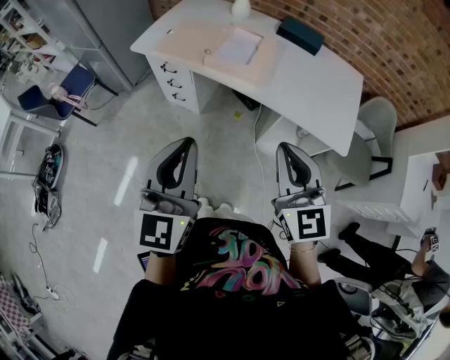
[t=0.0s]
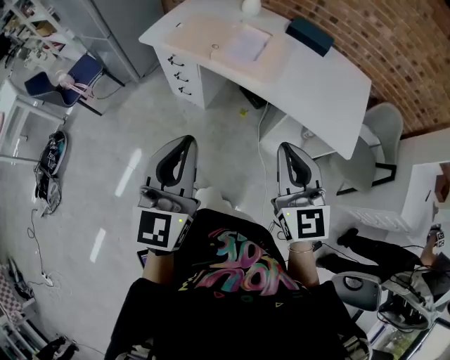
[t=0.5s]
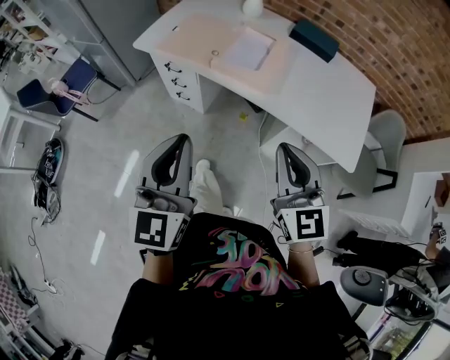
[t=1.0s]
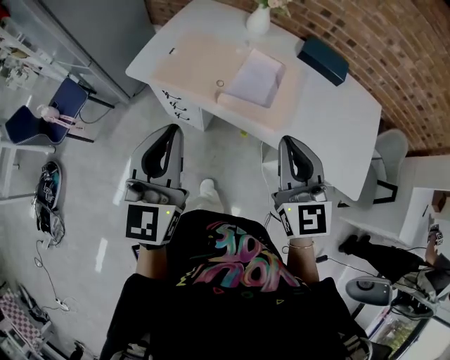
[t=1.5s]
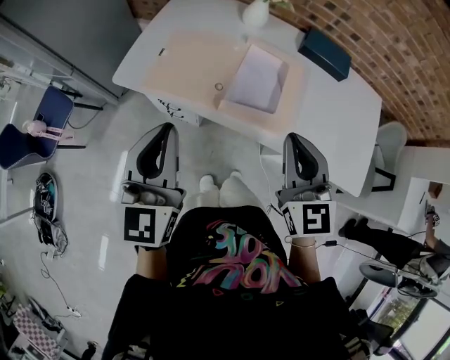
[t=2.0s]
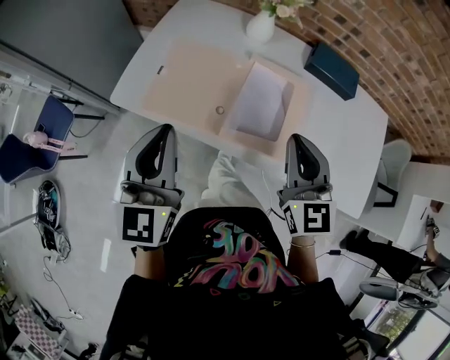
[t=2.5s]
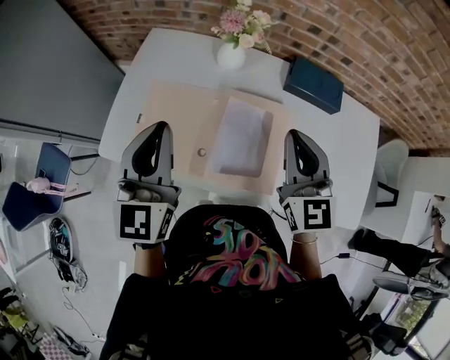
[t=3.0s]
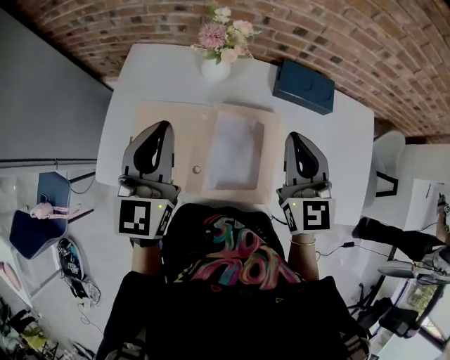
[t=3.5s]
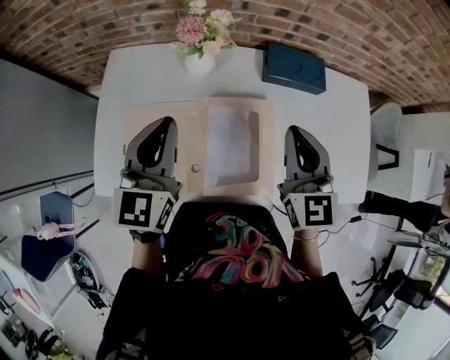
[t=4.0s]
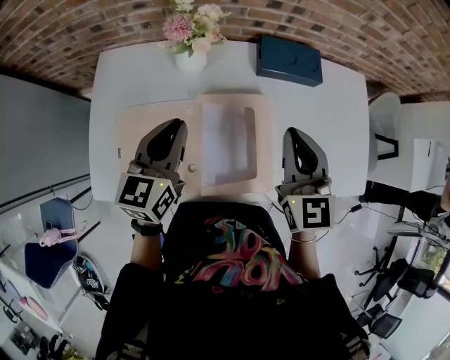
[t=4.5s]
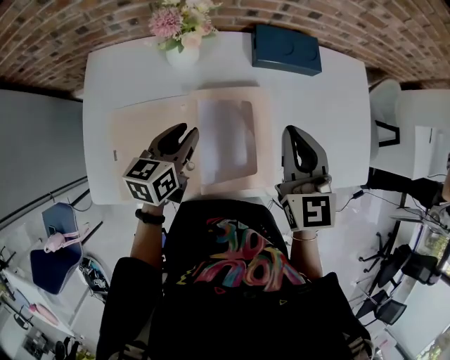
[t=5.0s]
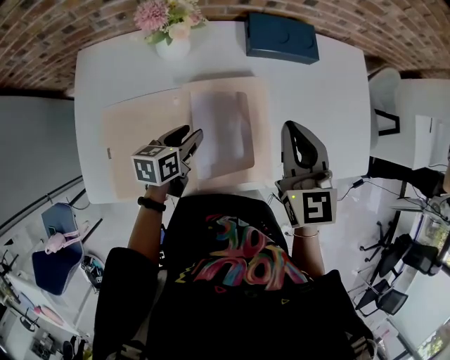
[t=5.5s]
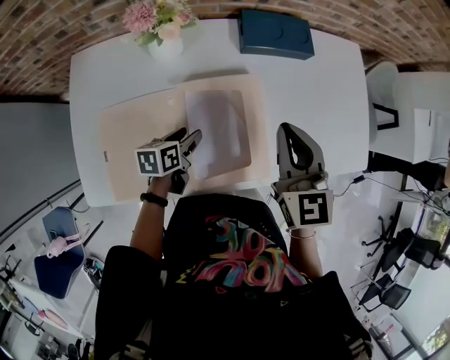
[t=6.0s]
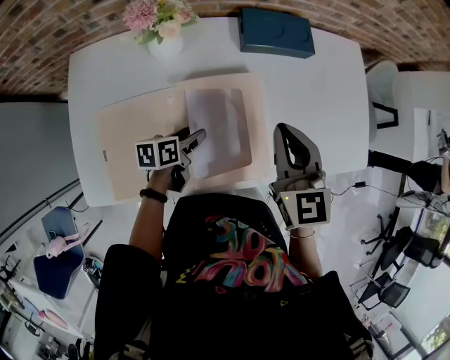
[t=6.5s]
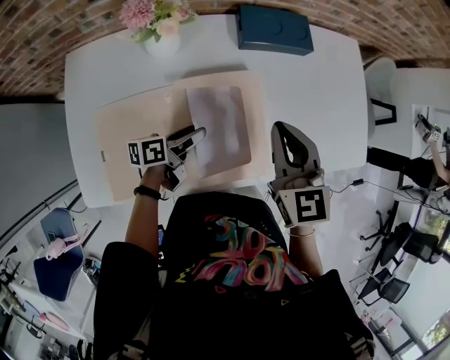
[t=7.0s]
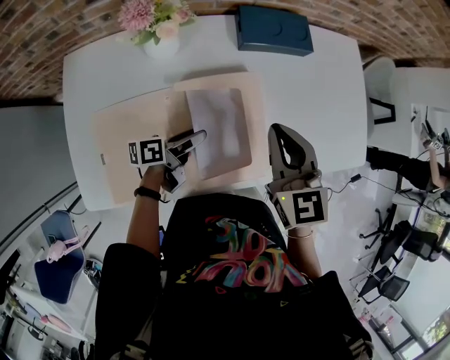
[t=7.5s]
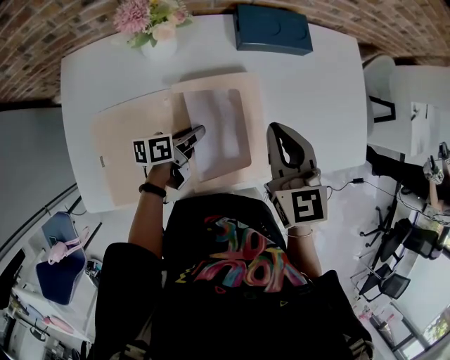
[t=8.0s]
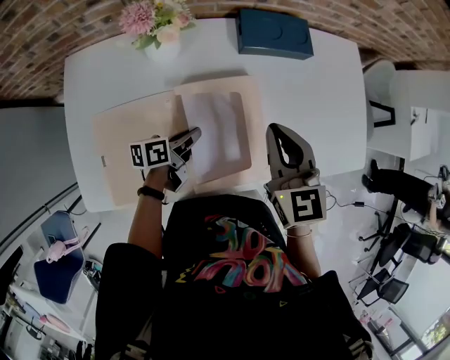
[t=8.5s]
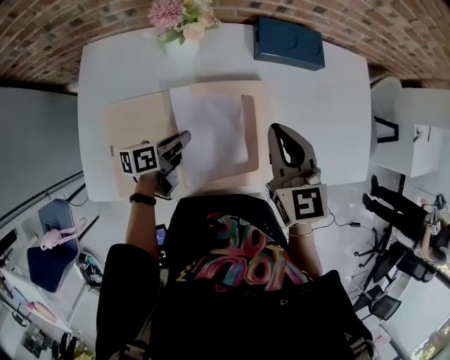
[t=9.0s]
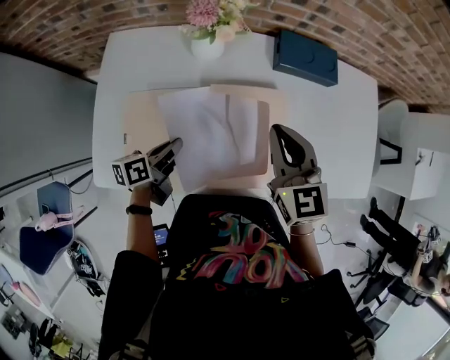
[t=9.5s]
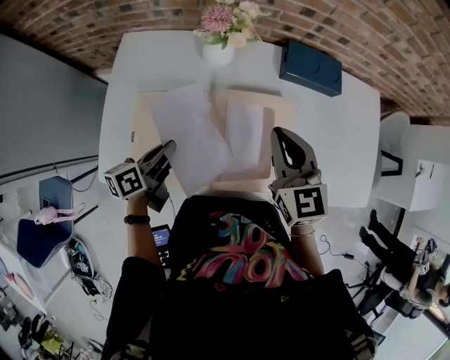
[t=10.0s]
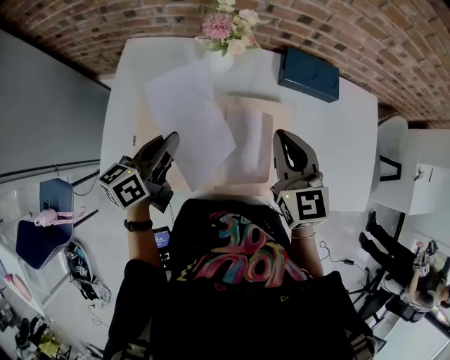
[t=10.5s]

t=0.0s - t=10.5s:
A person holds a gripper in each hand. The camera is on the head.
t=0.0s - t=2.0s: Both grippers move forward, about 35 cm.
t=2.0s - t=4.0s: Both grippers move forward, about 35 cm. The right gripper swivels approximately 20 degrees; the left gripper swivels approximately 20 degrees.
t=4.0s - t=6.5s: The left gripper is displaced downward by about 30 cm, swivels roughly 70 degrees, and opens up. The right gripper moves downward, approximately 5 cm.
t=6.5s - t=8.5s: The left gripper closes up.
t=8.5s - t=10.5s: The right gripper moves to the left, roughly 5 cm, while the left gripper shifts roughly 25 cm upward and to the left, and rotates approximately 40 degrees.

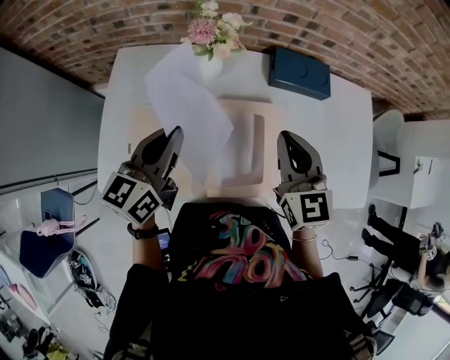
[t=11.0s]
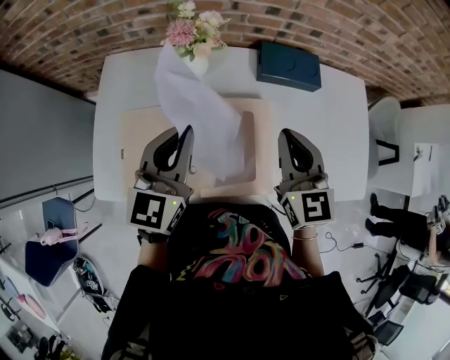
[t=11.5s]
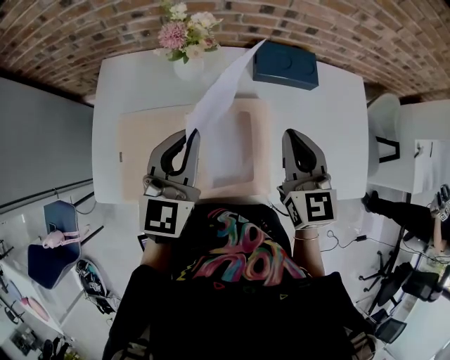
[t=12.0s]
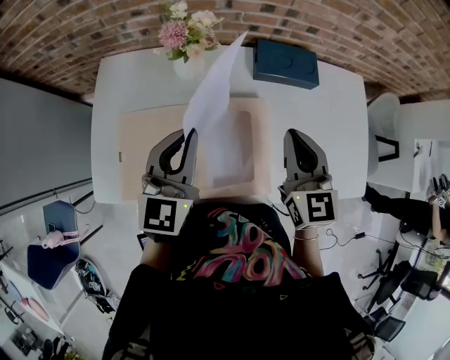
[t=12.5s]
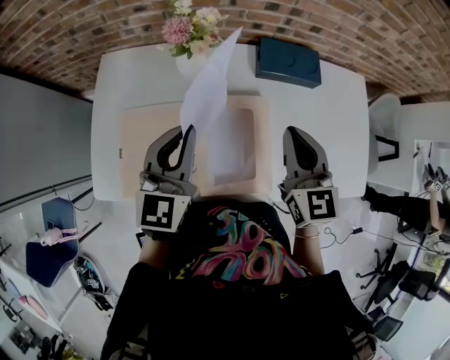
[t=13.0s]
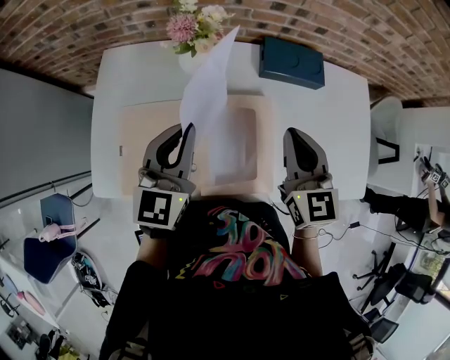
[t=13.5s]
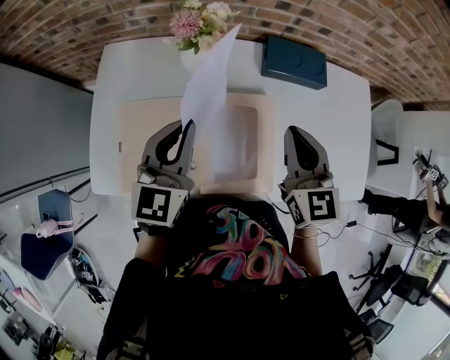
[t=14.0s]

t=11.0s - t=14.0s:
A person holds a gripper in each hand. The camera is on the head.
t=11.0s - t=12.5s: Both grippers travel together to the right, about 5 cm. The left gripper swivels some 20 degrees.
t=12.5s - t=14.0s: The grippers stay close to where they were, moving slightly.

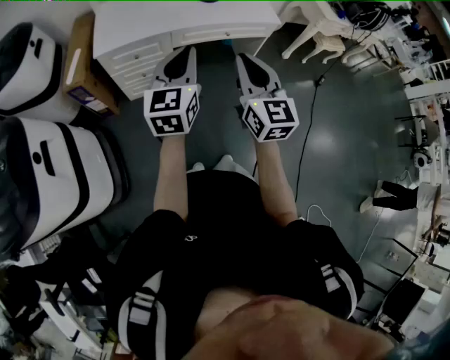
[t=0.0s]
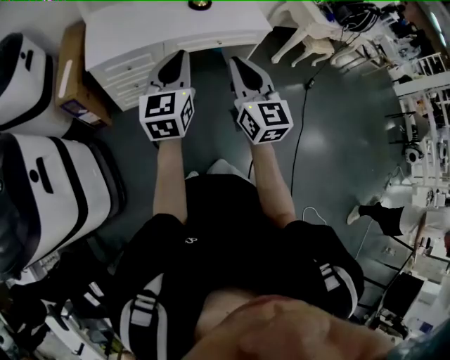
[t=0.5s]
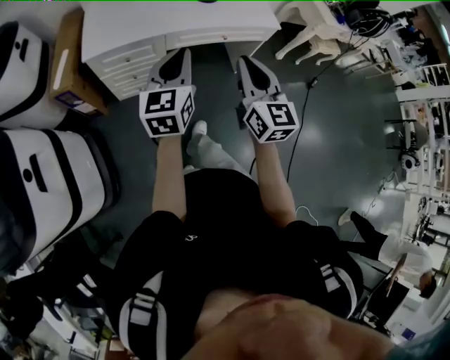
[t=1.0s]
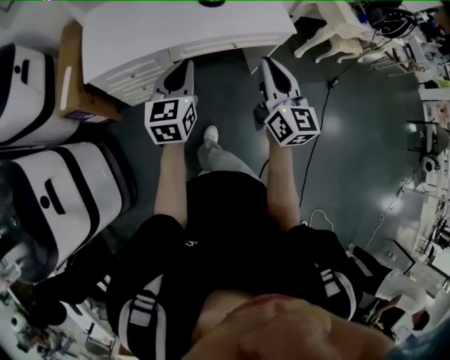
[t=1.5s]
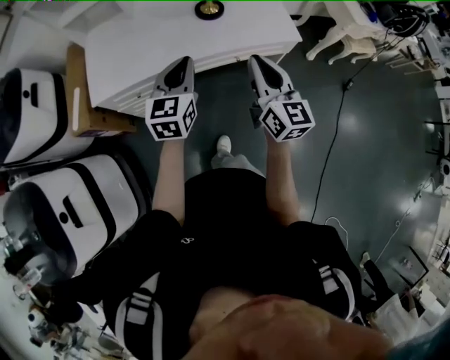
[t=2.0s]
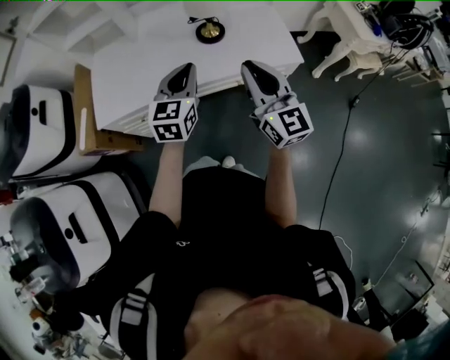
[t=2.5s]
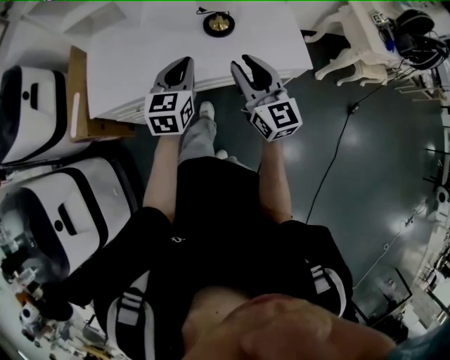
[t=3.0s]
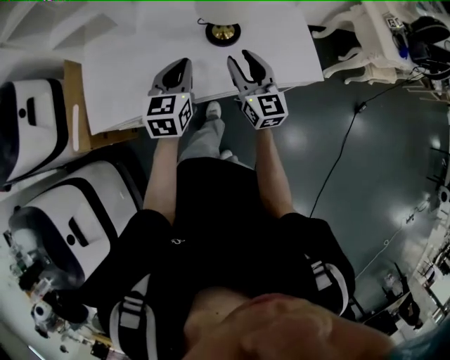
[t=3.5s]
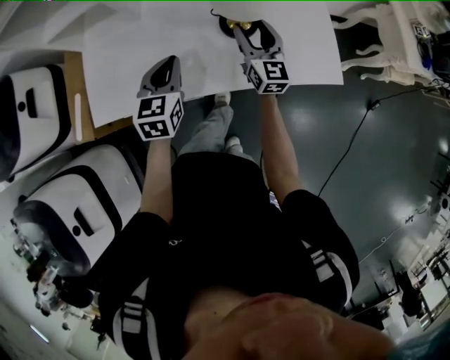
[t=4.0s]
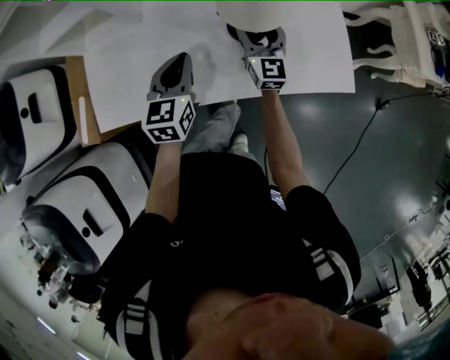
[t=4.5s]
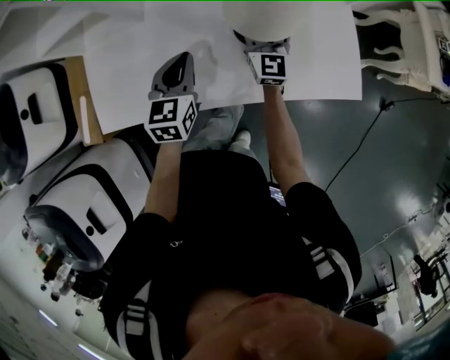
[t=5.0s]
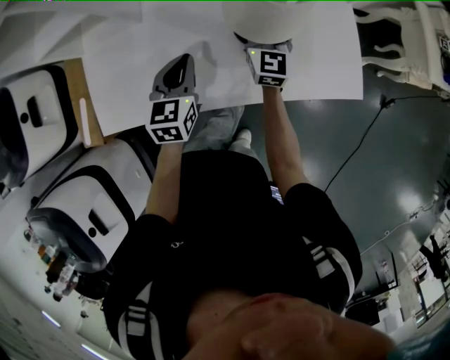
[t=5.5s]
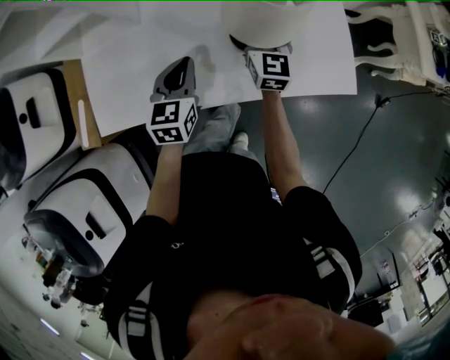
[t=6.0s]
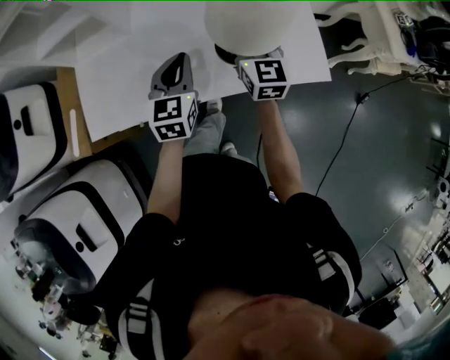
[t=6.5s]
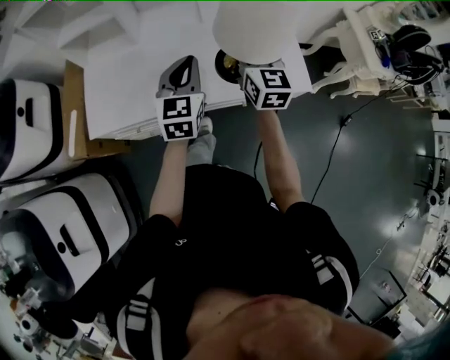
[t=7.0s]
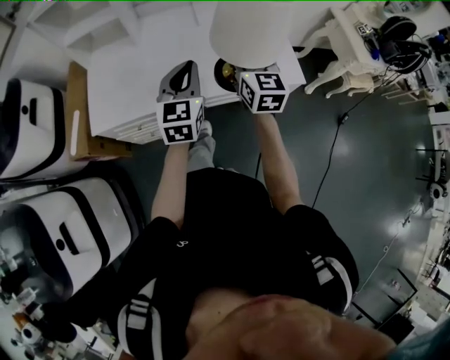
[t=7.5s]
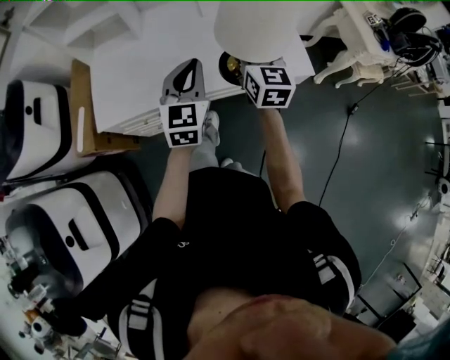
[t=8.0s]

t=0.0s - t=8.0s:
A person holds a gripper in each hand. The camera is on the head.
t=0.0s - t=2.0s: The two grippers go roughly 30 cm forward.
t=2.0s - t=4.0s: Both grippers travel together forward and downward, roughly 35 cm. The right gripper opens up.
t=4.0s - t=6.0s: The right gripper moves forward, roughly 5 cm, while the left gripper moves about 5 cm.
t=6.0s - t=8.0s: Both grippers move backward and upward, roughly 25 cm. The left gripper swivels about 20 degrees.

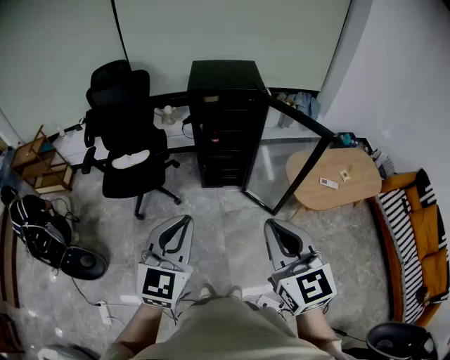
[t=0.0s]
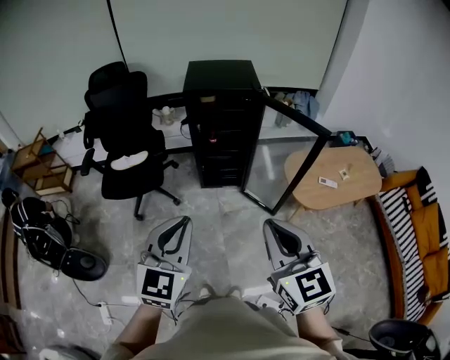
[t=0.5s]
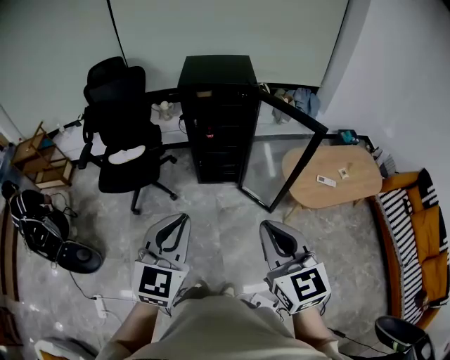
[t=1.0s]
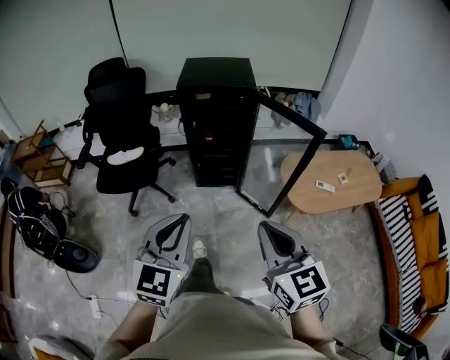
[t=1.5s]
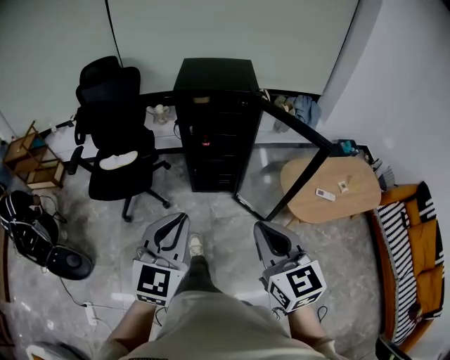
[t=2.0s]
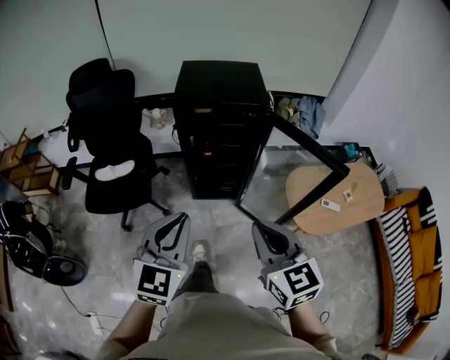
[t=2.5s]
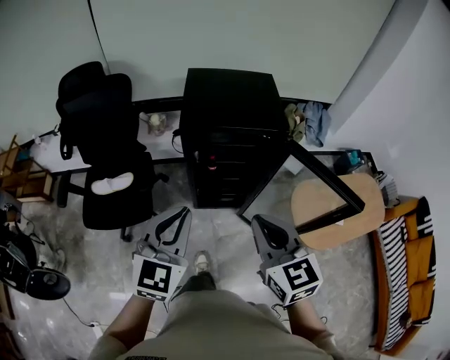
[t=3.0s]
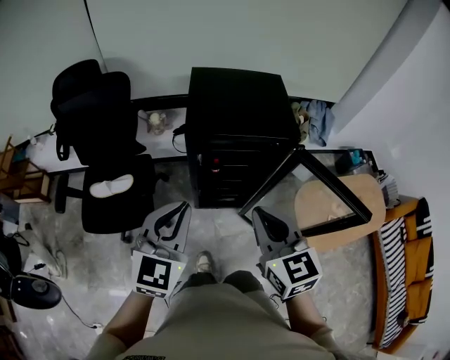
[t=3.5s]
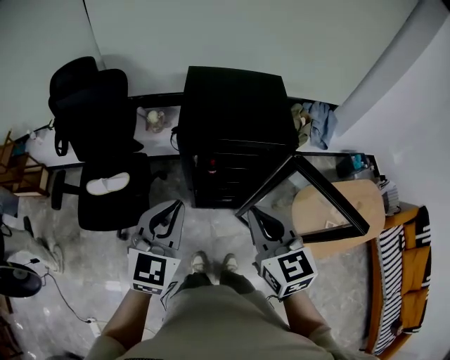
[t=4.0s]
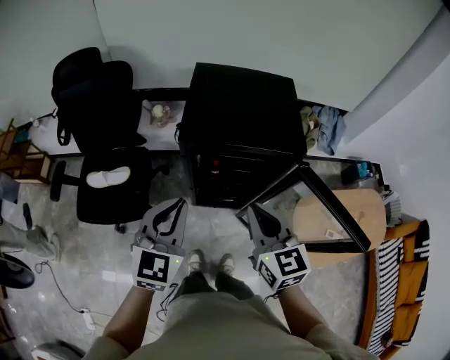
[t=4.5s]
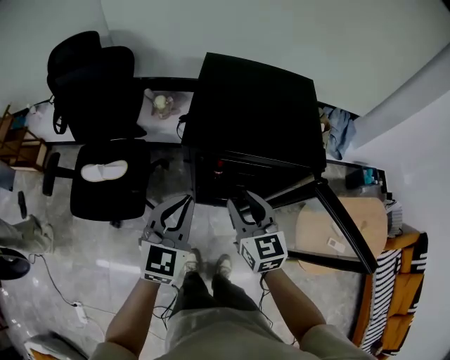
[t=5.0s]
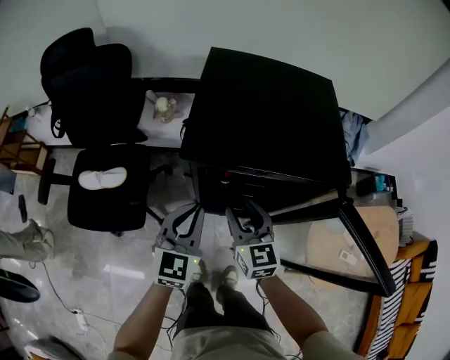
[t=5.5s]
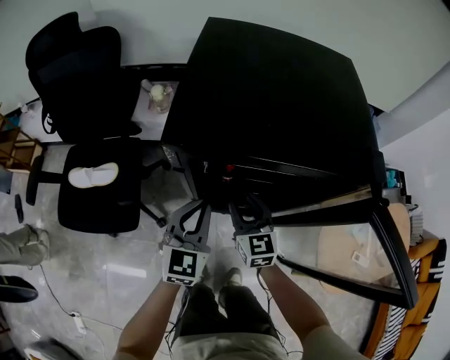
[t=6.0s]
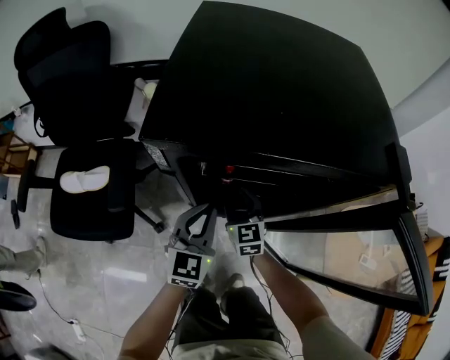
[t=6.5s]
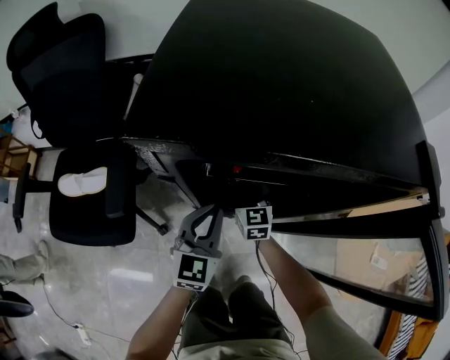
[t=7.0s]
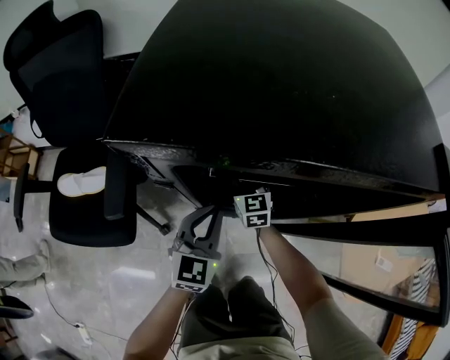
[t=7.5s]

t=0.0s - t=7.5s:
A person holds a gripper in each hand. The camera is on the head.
t=0.0s - t=2.0s: The right gripper travels forward, downward and to the right by some 15 cm; the left gripper moves forward, to the right and downward, about 10 cm.
t=2.0s - t=4.0s: The pair of grippers is taken forward, some 40 cm.
t=4.0s - t=5.5s: Both grippers move downward and forward, some 25 cm. The right gripper opens.
t=5.5s - t=7.5s: The right gripper goes about 35 cm downward and forward. The left gripper travels downward by approximately 25 cm.
